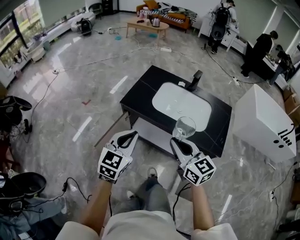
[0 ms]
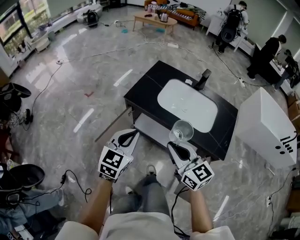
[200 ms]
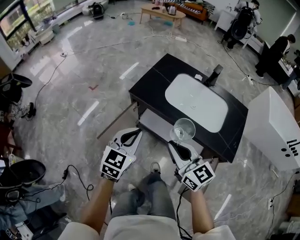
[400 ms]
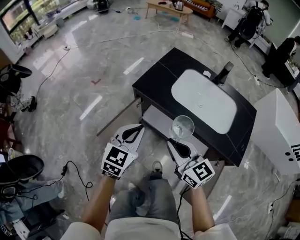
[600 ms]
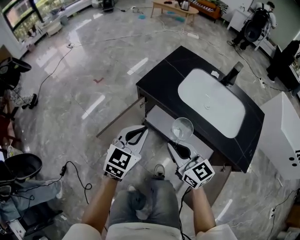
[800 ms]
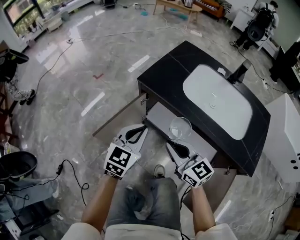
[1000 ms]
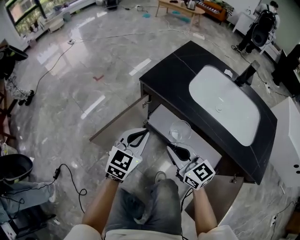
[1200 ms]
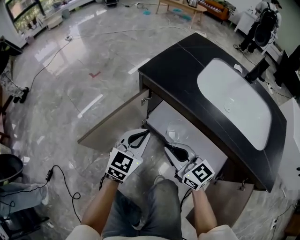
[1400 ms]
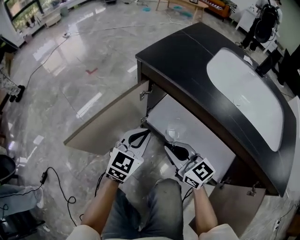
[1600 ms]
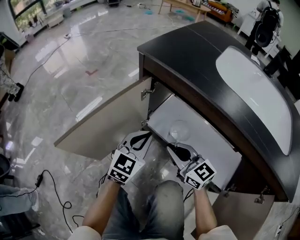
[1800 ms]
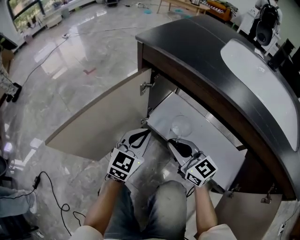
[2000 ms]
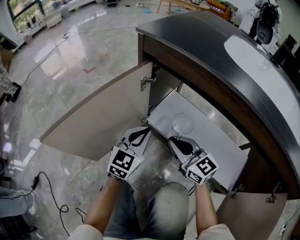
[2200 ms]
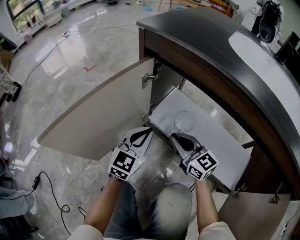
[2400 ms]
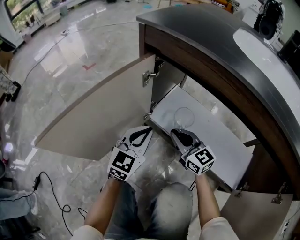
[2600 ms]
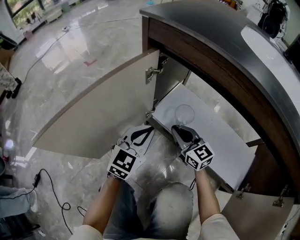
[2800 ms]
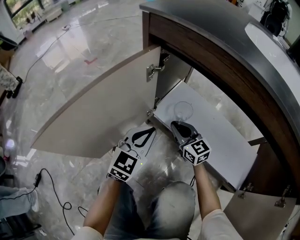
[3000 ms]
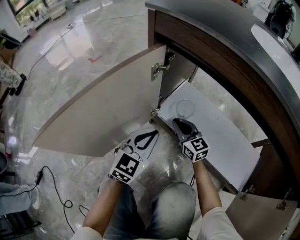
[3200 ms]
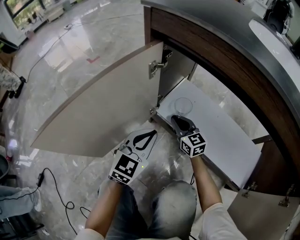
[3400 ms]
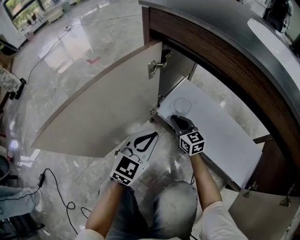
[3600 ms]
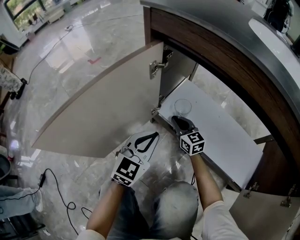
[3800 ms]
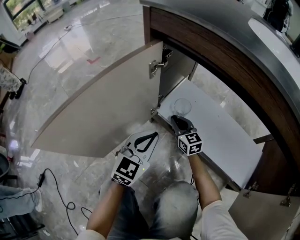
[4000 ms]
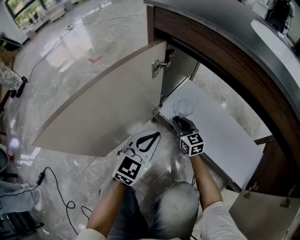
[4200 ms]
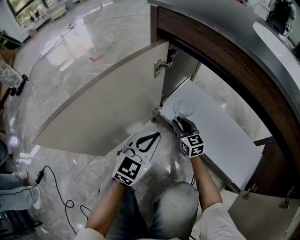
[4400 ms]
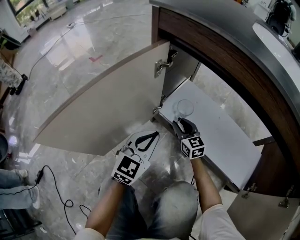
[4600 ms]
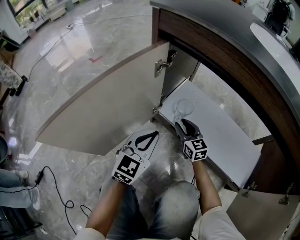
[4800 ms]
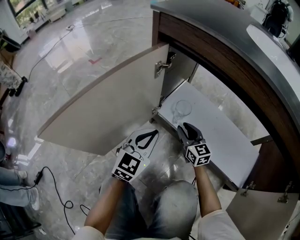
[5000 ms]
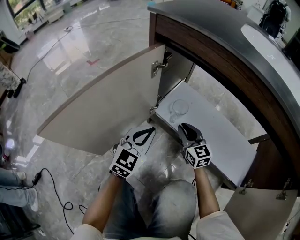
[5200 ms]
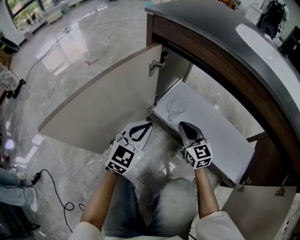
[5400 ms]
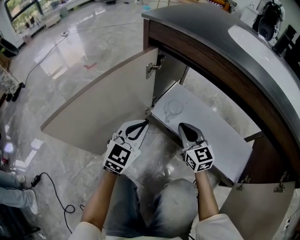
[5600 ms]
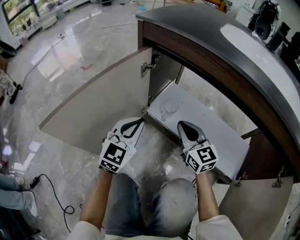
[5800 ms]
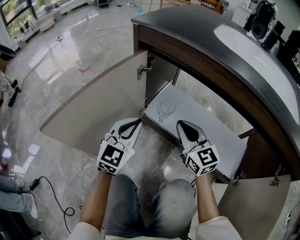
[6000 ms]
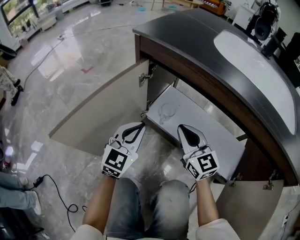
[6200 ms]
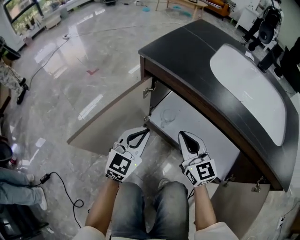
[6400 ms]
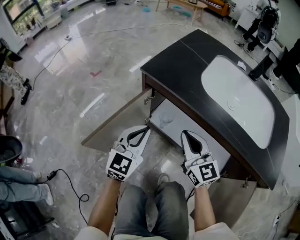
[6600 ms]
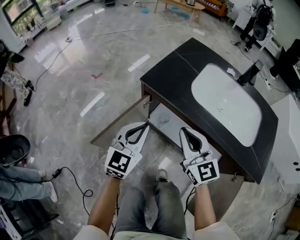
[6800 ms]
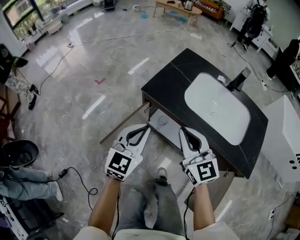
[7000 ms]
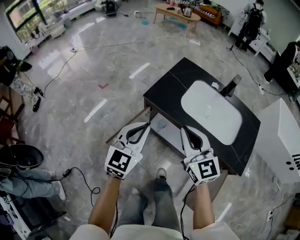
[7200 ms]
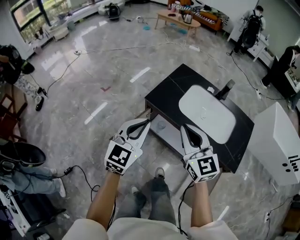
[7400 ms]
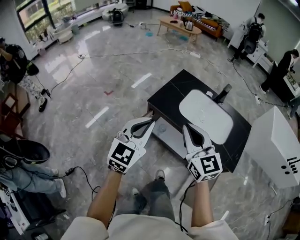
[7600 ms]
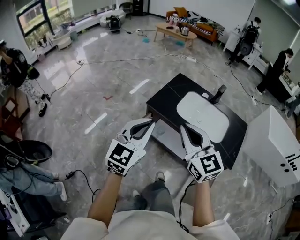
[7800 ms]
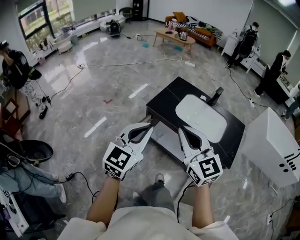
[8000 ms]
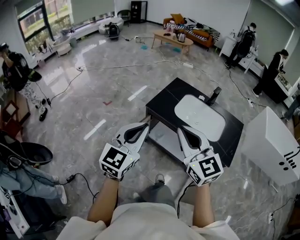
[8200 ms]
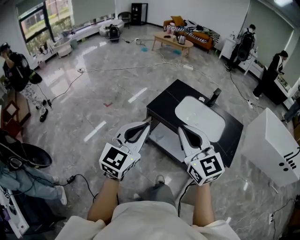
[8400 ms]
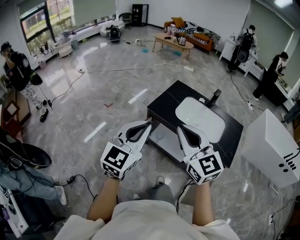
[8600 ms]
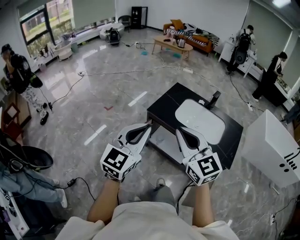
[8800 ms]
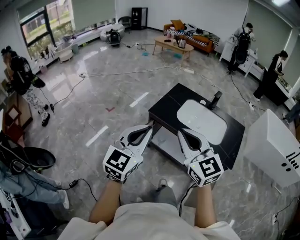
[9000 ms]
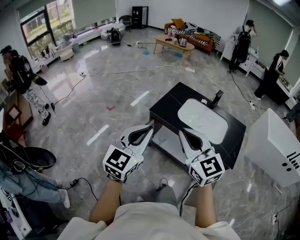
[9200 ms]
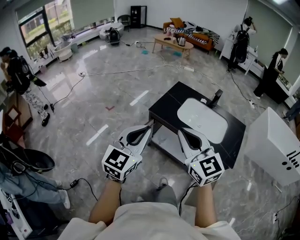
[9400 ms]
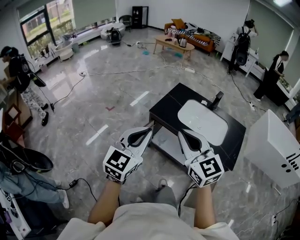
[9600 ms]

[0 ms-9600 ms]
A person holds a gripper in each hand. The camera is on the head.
0 ms to 1600 ms: The grippers both shift downward by approximately 50 cm. The right gripper rotates roughly 20 degrees.
1600 ms to 3200 ms: The right gripper shifts about 30 cm downward and forward. Meanwhile the left gripper is displaced downward by some 15 cm.
3200 ms to 4800 ms: The right gripper opens.
4800 ms to 6400 ms: The left gripper goes approximately 20 cm upward; the right gripper is displaced upward by roughly 30 cm, and closes.
6400 ms to 8000 ms: The two grippers go roughly 60 cm upward.
8000 ms to 9600 ms: The grippers make only small movements.

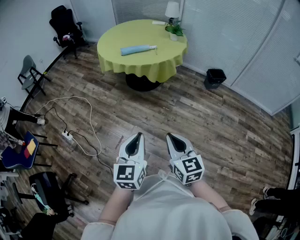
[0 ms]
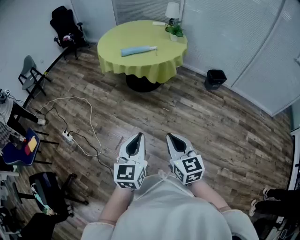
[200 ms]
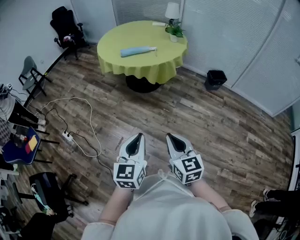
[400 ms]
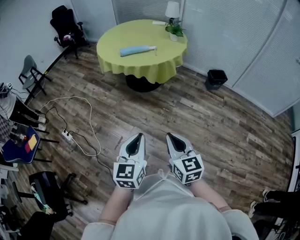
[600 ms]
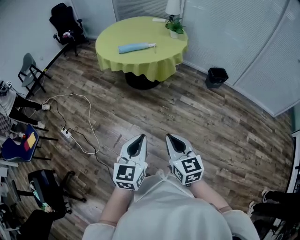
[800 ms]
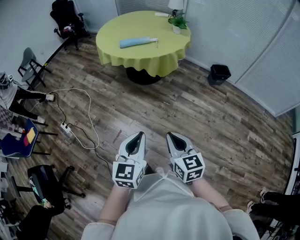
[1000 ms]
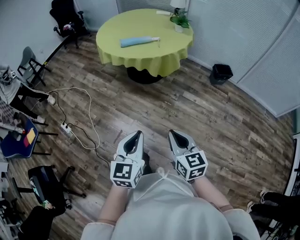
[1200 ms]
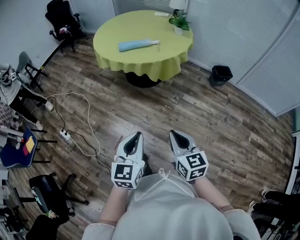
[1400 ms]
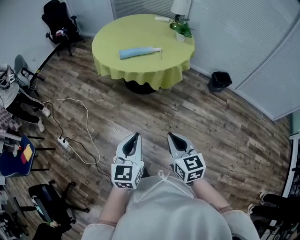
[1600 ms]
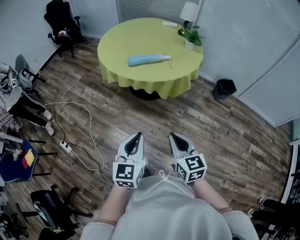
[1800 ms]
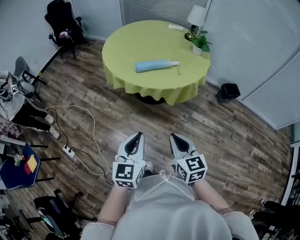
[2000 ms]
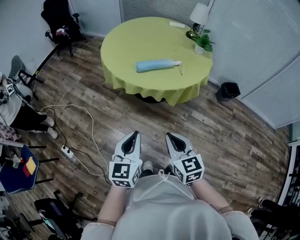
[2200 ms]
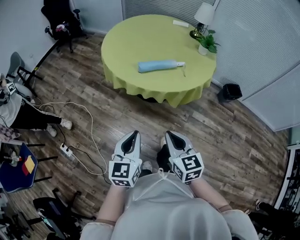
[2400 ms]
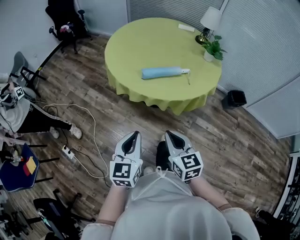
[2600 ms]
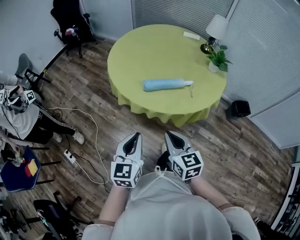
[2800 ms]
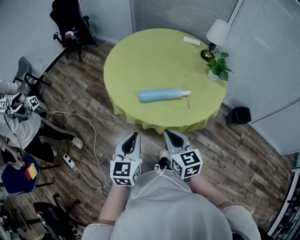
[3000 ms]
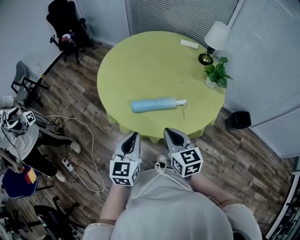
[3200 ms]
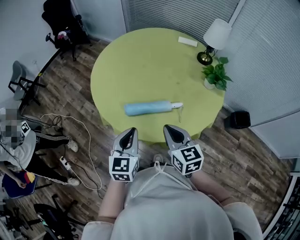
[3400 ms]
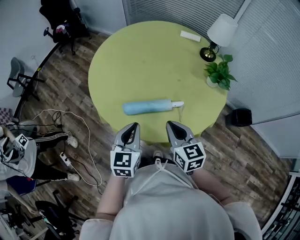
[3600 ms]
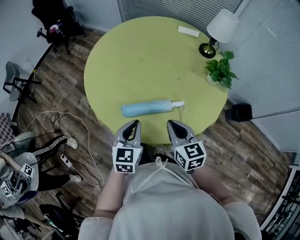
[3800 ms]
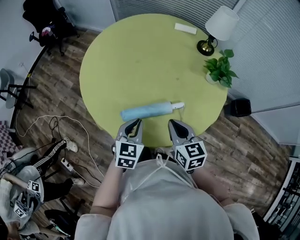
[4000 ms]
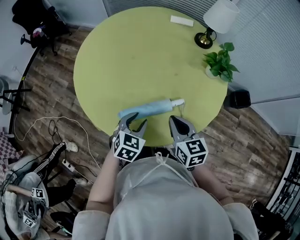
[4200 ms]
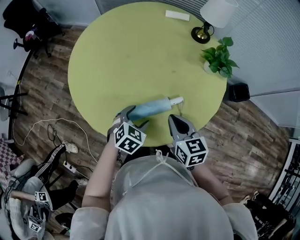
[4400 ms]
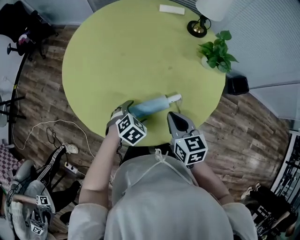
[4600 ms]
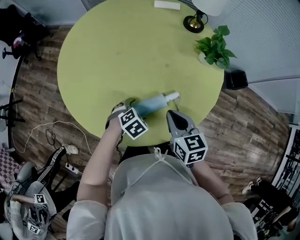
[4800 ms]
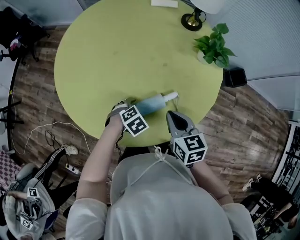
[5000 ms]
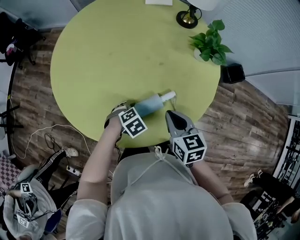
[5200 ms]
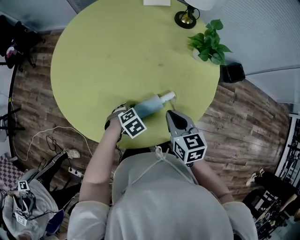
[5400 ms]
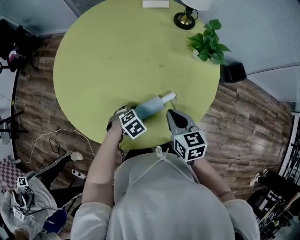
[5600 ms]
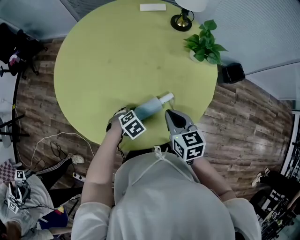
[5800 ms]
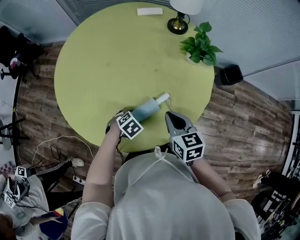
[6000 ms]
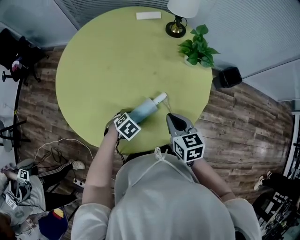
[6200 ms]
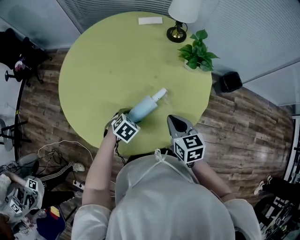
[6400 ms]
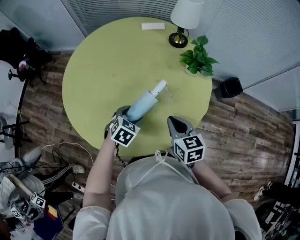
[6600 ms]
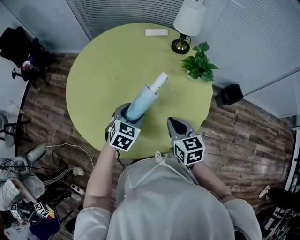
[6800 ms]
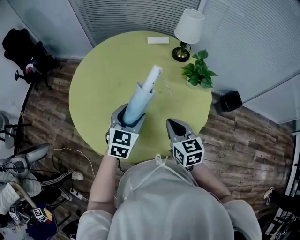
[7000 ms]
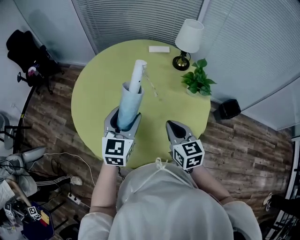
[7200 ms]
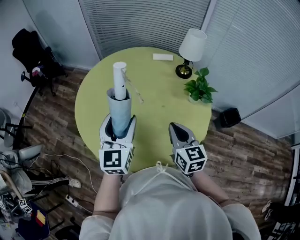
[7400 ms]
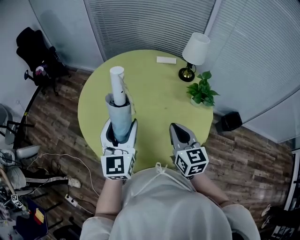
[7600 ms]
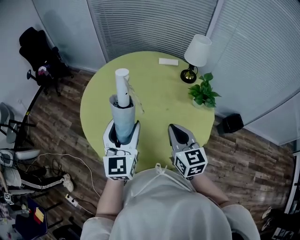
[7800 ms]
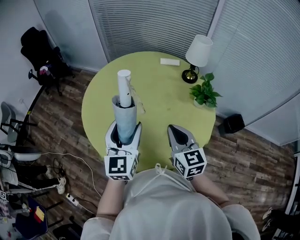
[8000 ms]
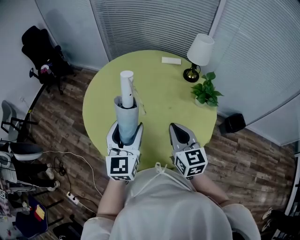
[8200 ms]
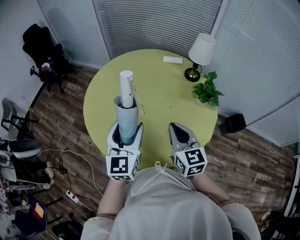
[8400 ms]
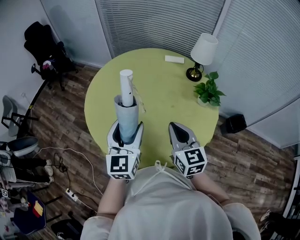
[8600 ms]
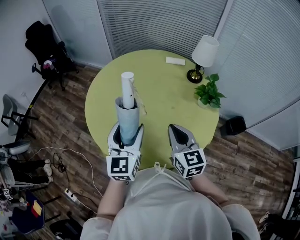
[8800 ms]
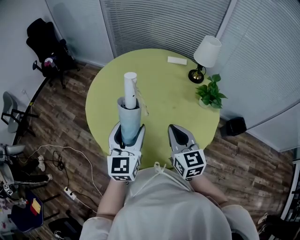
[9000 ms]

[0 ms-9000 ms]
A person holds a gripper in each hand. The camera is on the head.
0 ms to 1600 ms: The grippers both shift forward by roughly 20 cm.
1600 ms to 3000 ms: The two grippers travel together, forward, roughly 40 cm.
3000 ms to 4400 ms: The left gripper is displaced forward, downward and to the right by about 35 cm, points its fingers approximately 40 degrees further downward, and opens up. Meanwhile the right gripper is displaced forward and to the right by some 30 cm.
4400 ms to 6000 ms: The left gripper travels downward by roughly 10 cm, and turns by roughly 30 degrees, while the right gripper moves approximately 5 cm.
6000 ms to 7600 ms: The left gripper goes some 40 cm upward, and tilts its fingers roughly 80 degrees upward, while the right gripper heads upward, covering approximately 15 cm, and turns by approximately 20 degrees.
7600 ms to 9000 ms: The grippers make only small movements.

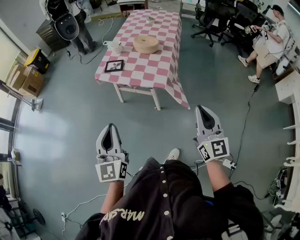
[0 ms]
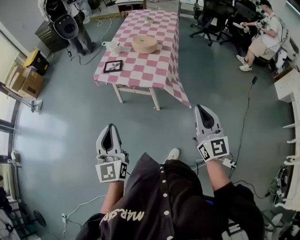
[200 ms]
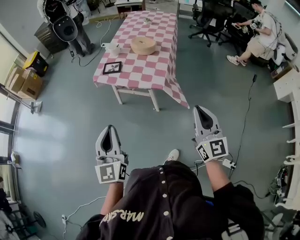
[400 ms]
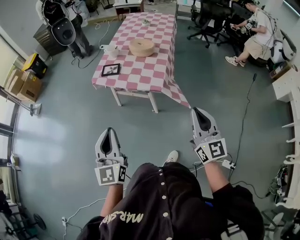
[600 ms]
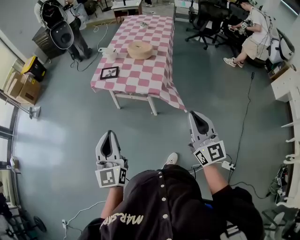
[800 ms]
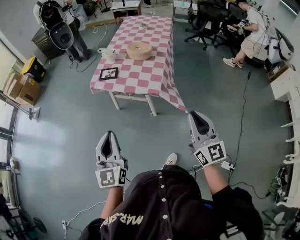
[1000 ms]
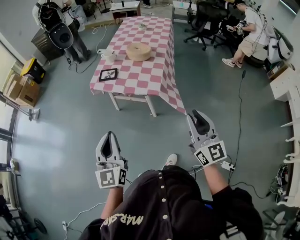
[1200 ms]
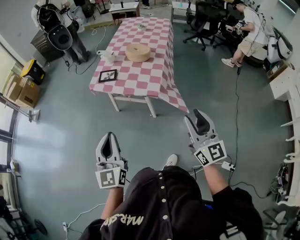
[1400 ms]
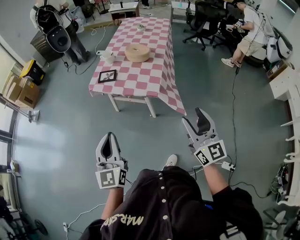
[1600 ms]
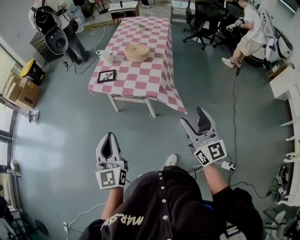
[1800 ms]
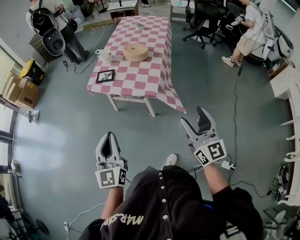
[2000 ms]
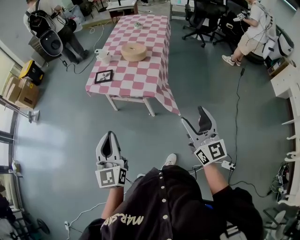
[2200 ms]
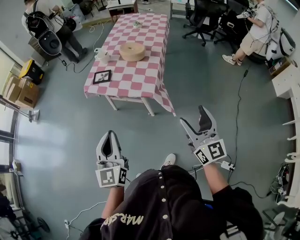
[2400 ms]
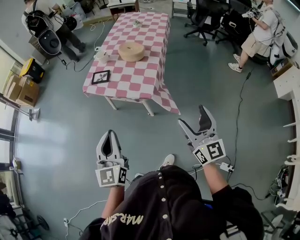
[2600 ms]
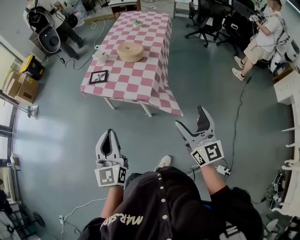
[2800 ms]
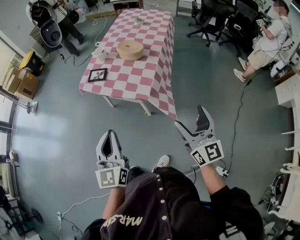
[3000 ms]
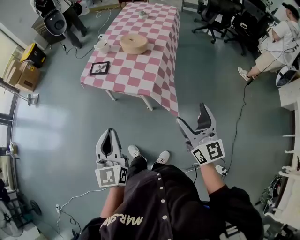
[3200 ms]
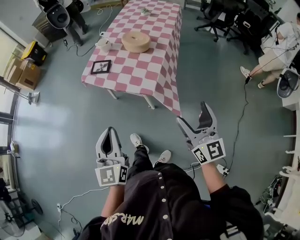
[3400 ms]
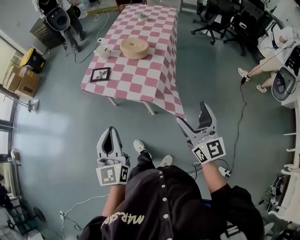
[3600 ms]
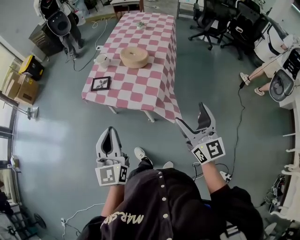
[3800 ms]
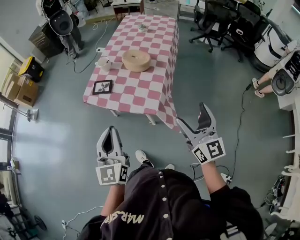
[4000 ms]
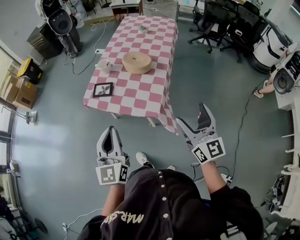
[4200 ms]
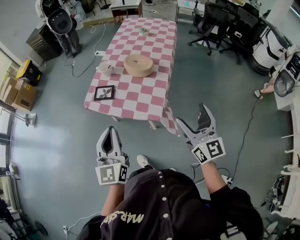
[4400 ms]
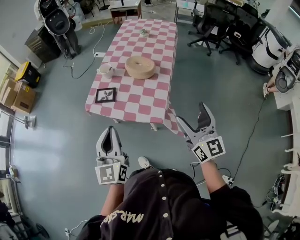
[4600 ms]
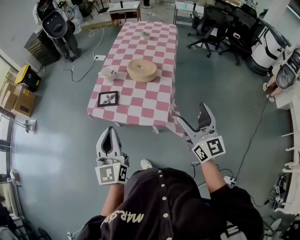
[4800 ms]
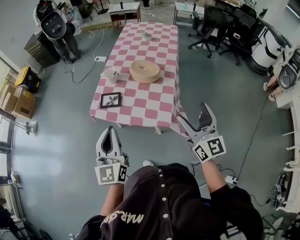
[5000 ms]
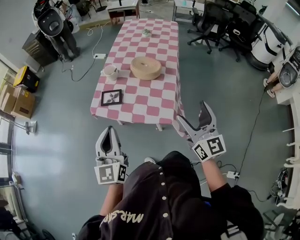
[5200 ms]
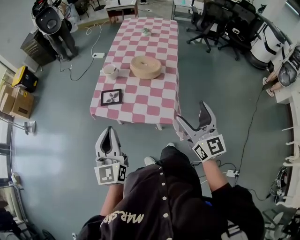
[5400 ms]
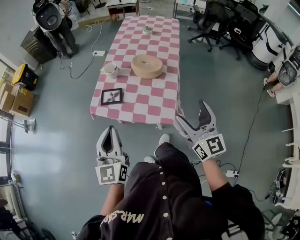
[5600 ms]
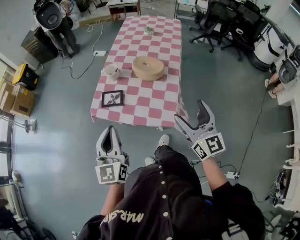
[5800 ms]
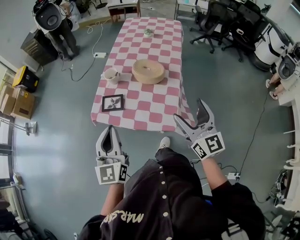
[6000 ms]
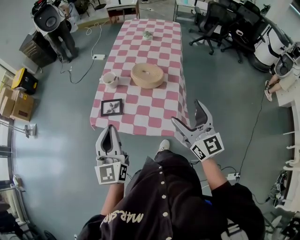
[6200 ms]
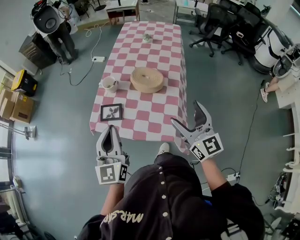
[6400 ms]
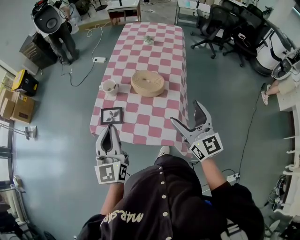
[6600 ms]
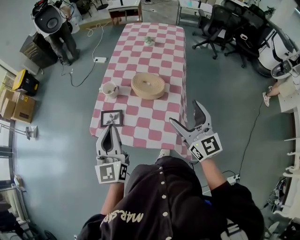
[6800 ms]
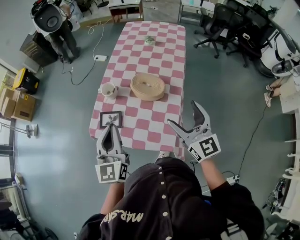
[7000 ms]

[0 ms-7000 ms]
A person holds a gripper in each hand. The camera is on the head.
0 ms to 1400 ms: The grippers make only small movements.
1400 ms to 2800 ms: Both grippers travel together to the right and forward, some 10 cm. The right gripper opens up.
2800 ms to 4200 ms: The two grippers go roughly 15 cm forward.
4200 ms to 5600 ms: Both grippers move to the left and forward, some 10 cm.
5600 ms to 7000 ms: Both grippers travel together forward, some 15 cm.
